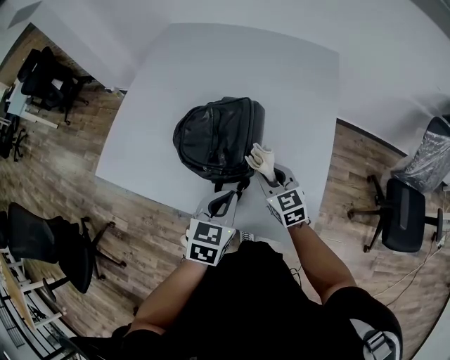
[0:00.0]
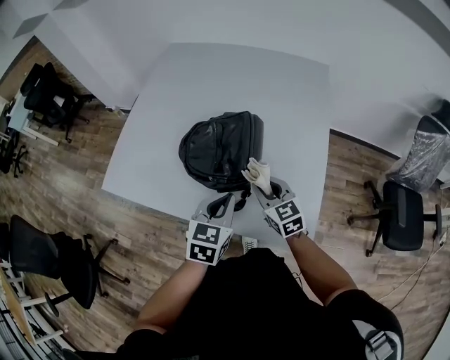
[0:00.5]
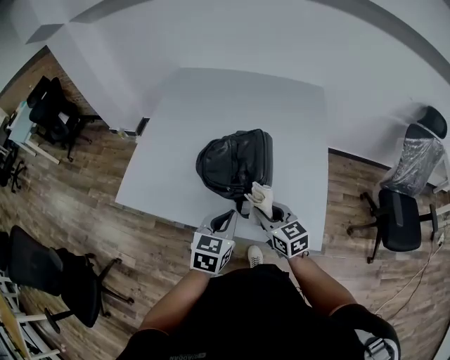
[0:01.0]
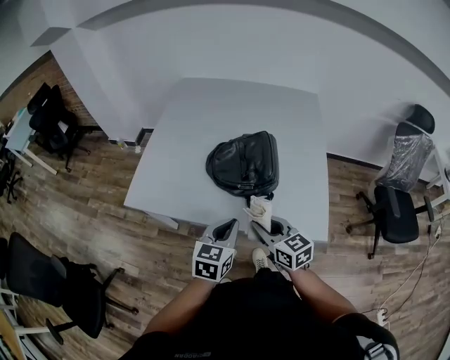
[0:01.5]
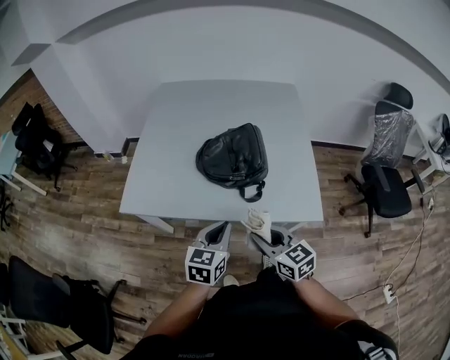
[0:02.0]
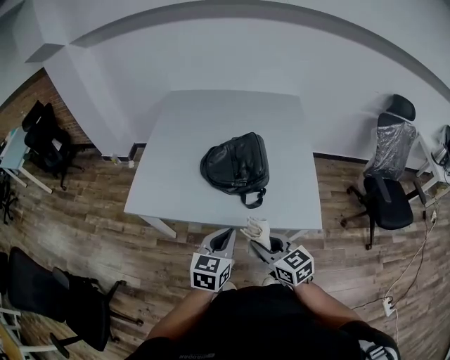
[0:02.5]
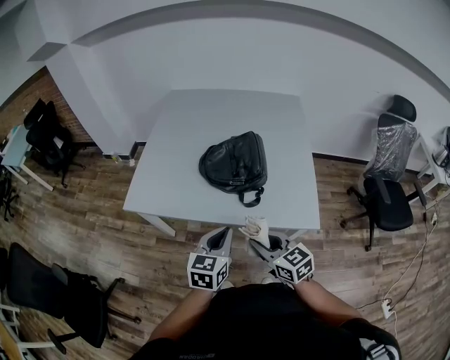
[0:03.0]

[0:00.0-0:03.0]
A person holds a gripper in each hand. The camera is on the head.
0:00.0 to 0:01.5: The right gripper is displaced backward, to the left and upward by about 25 cm, while the left gripper moves to the left, backward and upward, roughly 20 cm.
0:01.5 to 0:03.0: Both grippers move backward, roughly 10 cm.

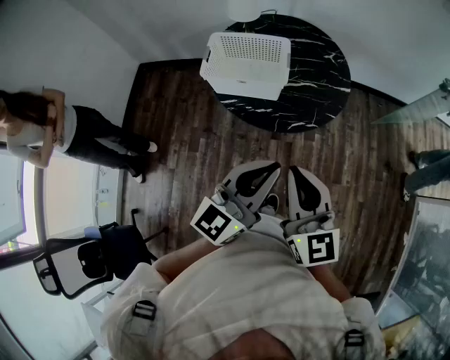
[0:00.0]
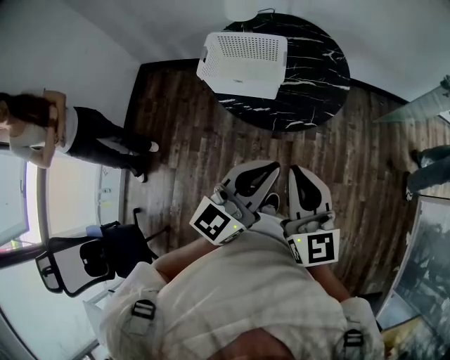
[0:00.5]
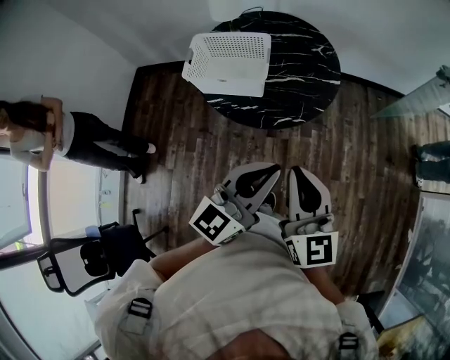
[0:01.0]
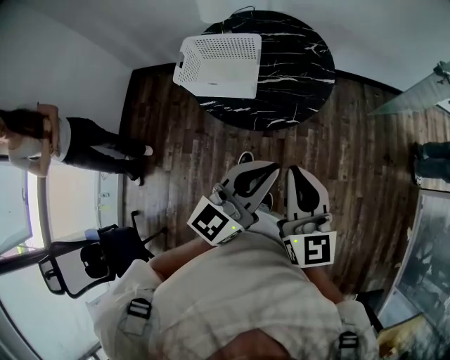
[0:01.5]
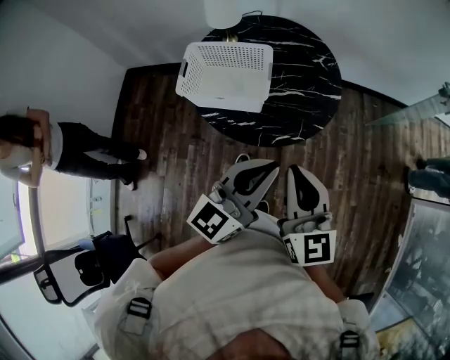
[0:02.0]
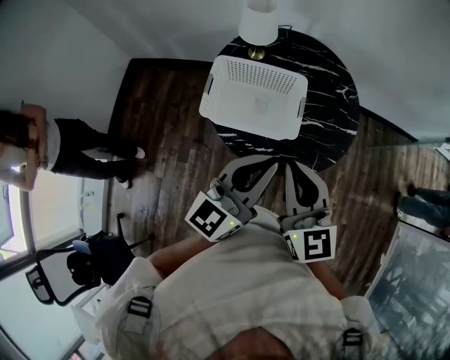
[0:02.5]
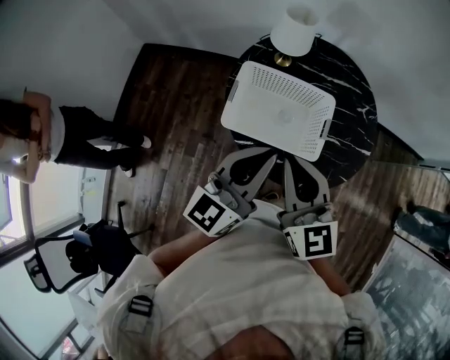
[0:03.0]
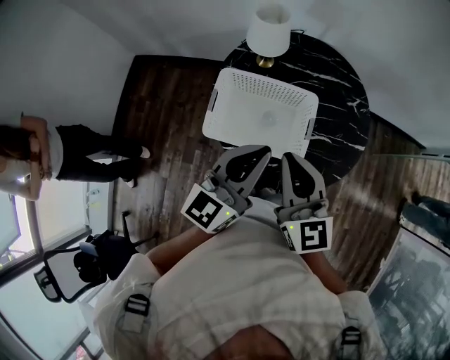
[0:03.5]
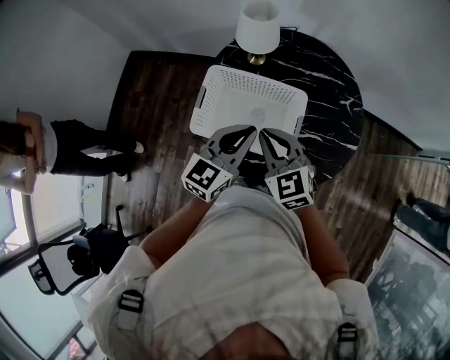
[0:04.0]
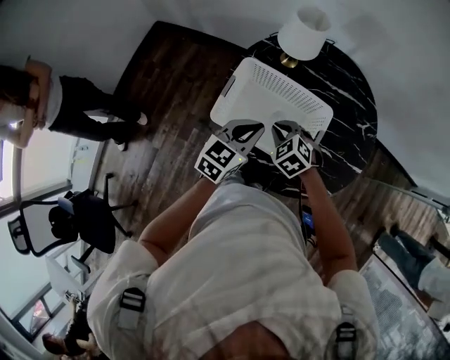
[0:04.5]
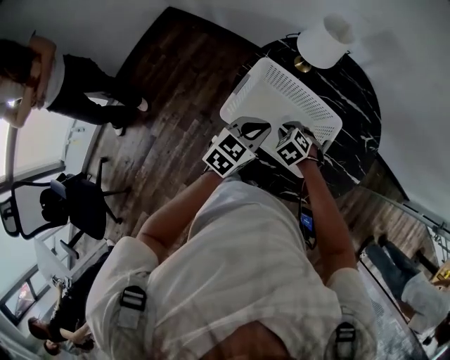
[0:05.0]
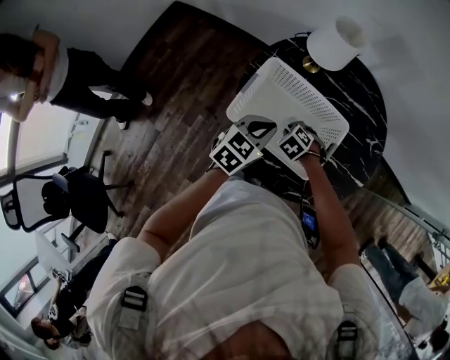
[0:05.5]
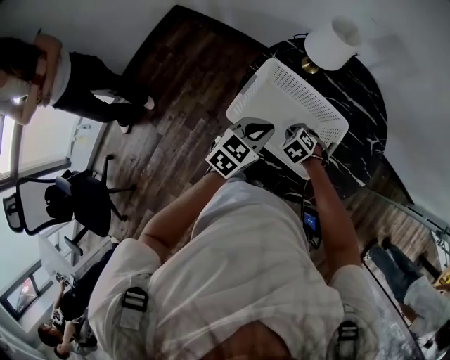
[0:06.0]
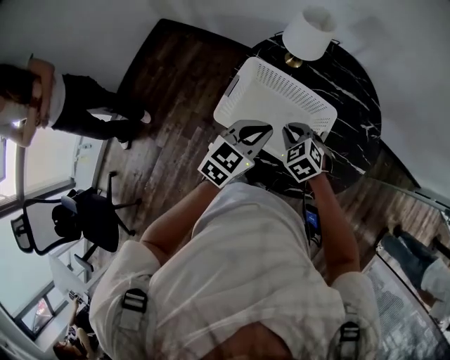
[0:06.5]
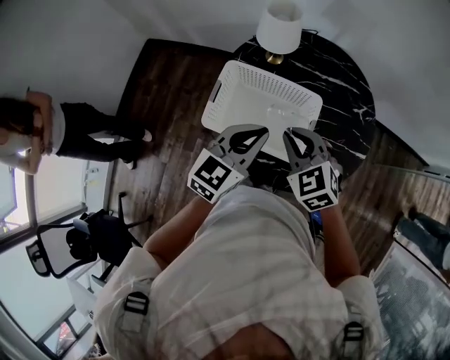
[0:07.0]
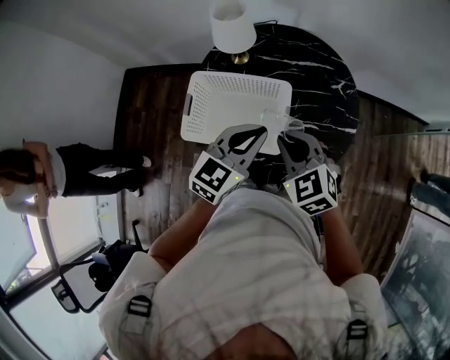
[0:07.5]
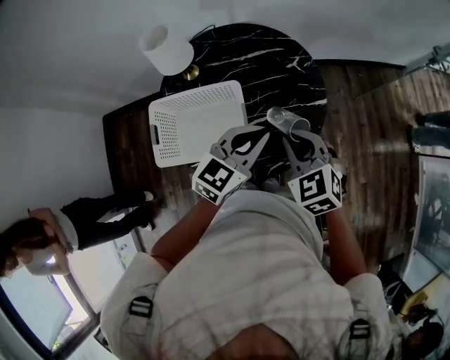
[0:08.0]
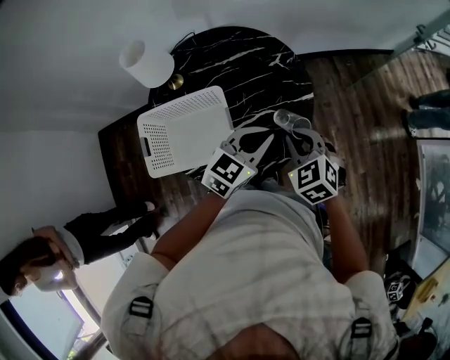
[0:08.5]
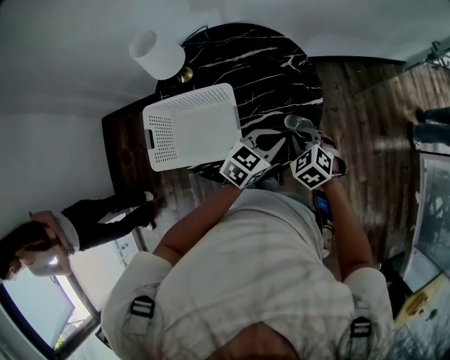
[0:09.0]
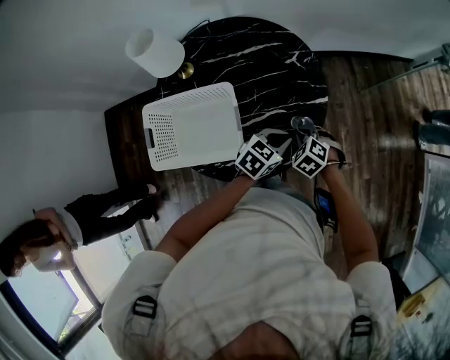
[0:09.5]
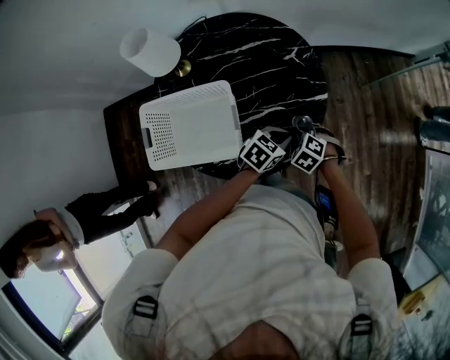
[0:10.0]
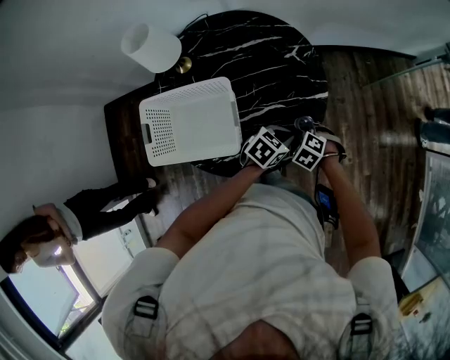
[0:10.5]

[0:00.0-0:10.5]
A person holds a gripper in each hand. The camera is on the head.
0:00.0 to 0:02.0: The grippers both shift forward by some 10 cm.
0:02.0 to 0:04.0: Both grippers move forward and to the left, some 35 cm. The right gripper swivels approximately 40 degrees.
0:04.0 to 0:06.5: The right gripper goes about 15 cm downward, and changes its angle by some 30 degrees; the left gripper travels downward by approximately 5 cm.
0:06.5 to 0:08.5: The right gripper moves roughly 30 cm, and changes its angle by some 40 degrees. Meanwhile the left gripper shifts by approximately 30 cm, and turns by approximately 40 degrees.
0:08.5 to 0:10.5: The two grippers go about 20 cm downward. The right gripper changes its angle by roughly 40 degrees. Meanwhile the left gripper rotates some 30 degrees.

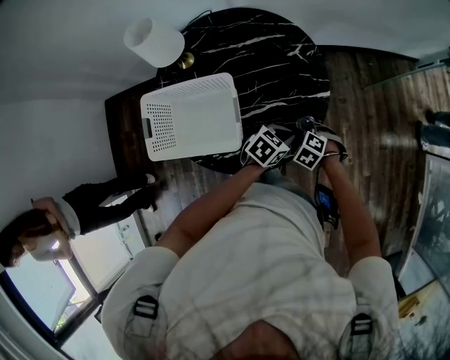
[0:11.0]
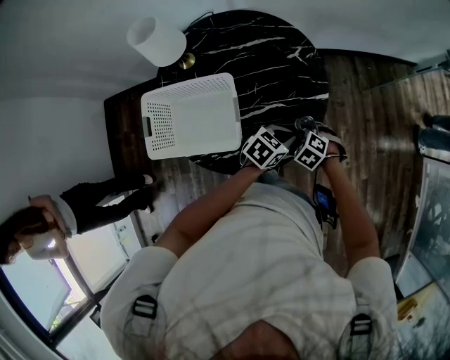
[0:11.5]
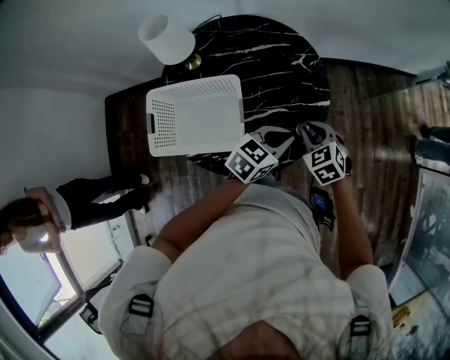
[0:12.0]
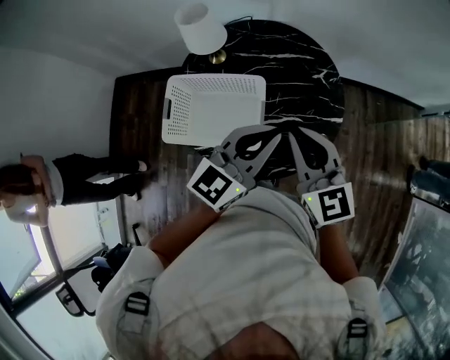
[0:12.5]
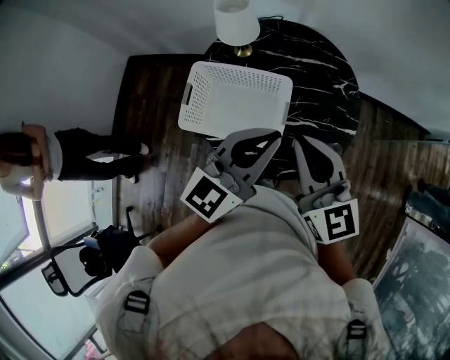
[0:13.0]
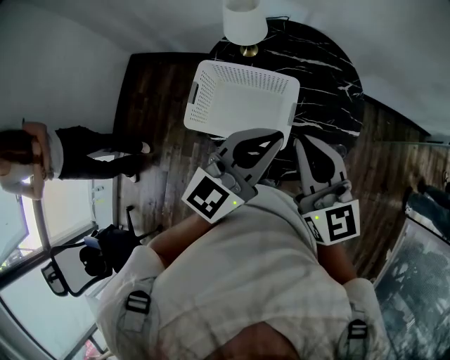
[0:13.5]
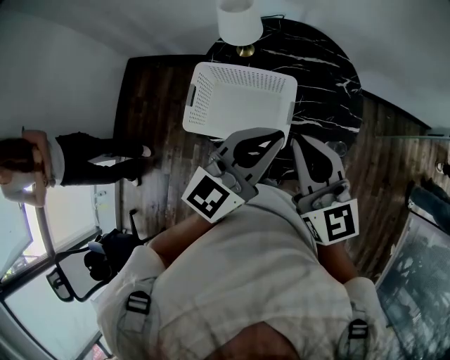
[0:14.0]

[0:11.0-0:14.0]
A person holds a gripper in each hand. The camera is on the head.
0:11.0 to 0:12.5: Both grippers move upward, about 35 cm. The right gripper angles its fingers upward, by about 70 degrees, while the left gripper tips its fingers upward by roughly 40 degrees.
0:12.5 to 0:14.0: Both grippers move to the left, approximately 10 cm.

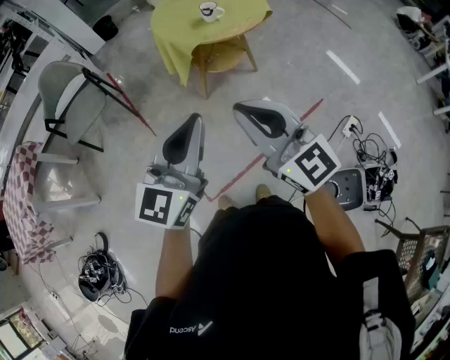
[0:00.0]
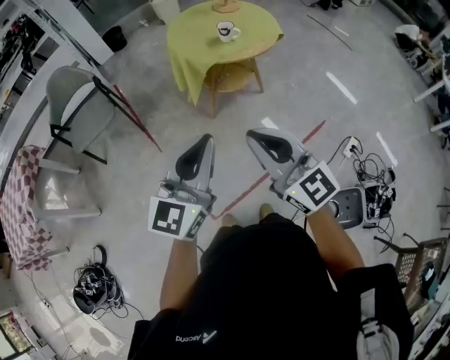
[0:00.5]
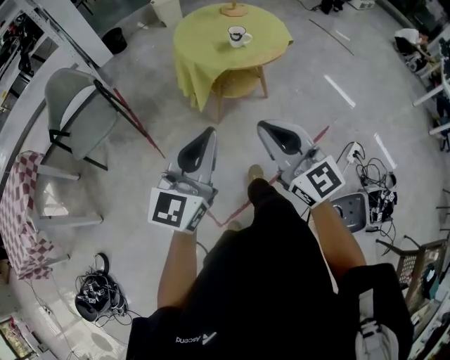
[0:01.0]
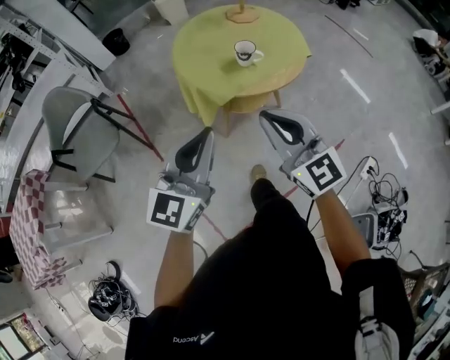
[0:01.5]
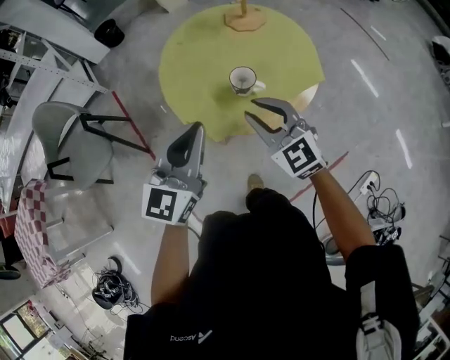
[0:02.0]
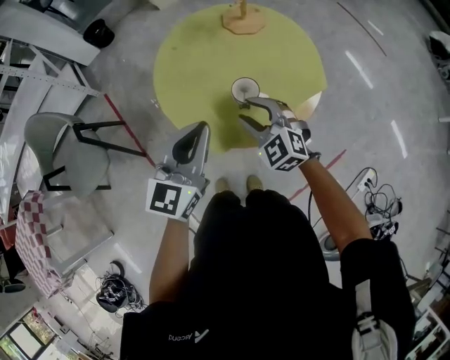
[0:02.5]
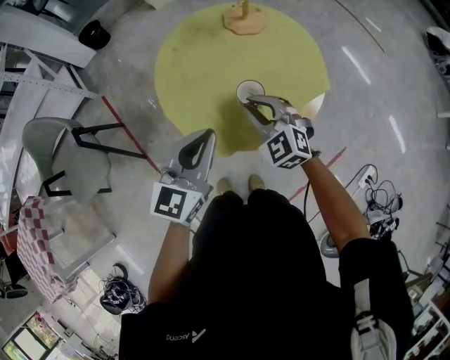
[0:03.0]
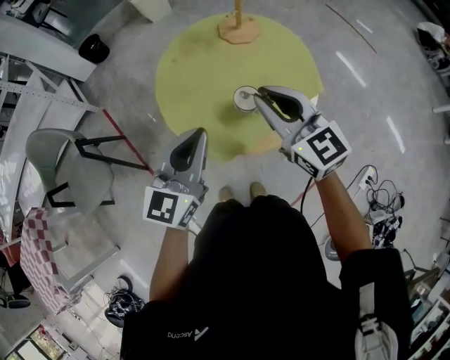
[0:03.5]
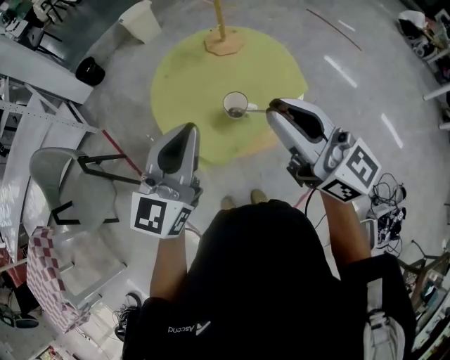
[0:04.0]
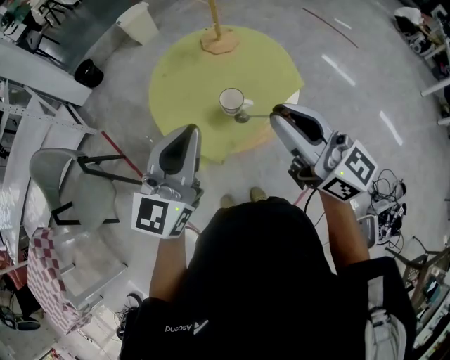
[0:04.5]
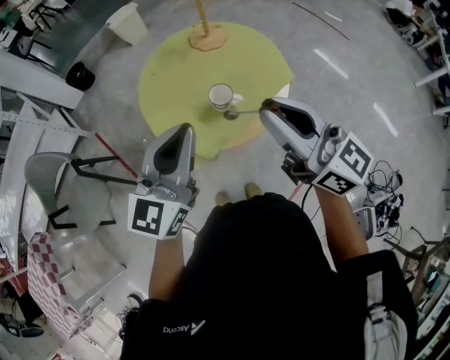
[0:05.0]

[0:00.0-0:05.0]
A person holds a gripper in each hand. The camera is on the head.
0:00.0 to 0:02.5: Both grippers are carried forward, roughly 60 cm. The right gripper angles its fingers downward, by about 40 degrees, and opens.
0:02.5 to 0:05.0: The left gripper goes approximately 10 cm upward, while the right gripper moves upward, approximately 25 cm, tilts its fingers approximately 40 degrees upward, and closes.

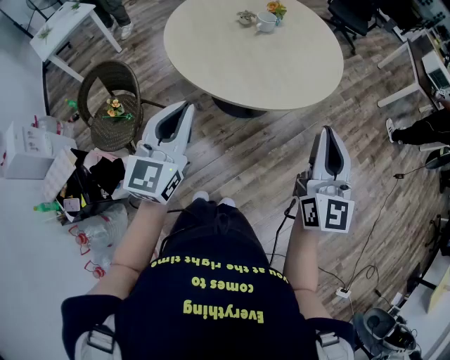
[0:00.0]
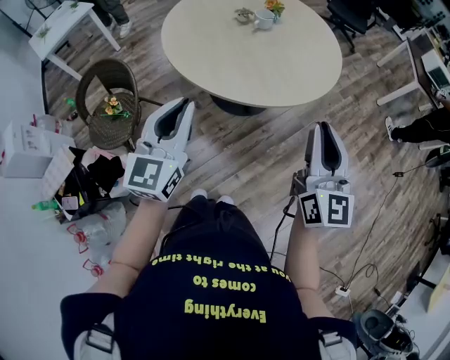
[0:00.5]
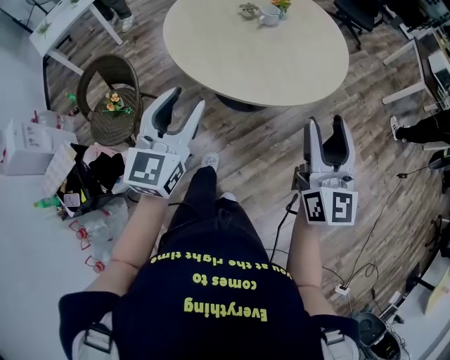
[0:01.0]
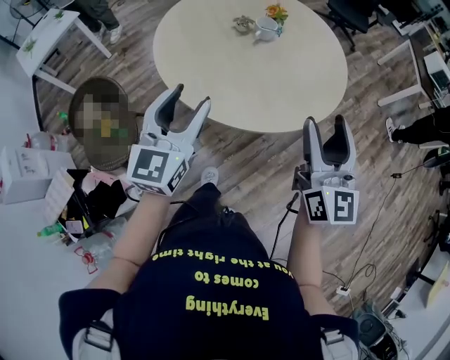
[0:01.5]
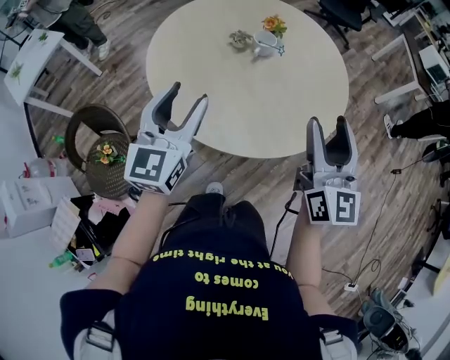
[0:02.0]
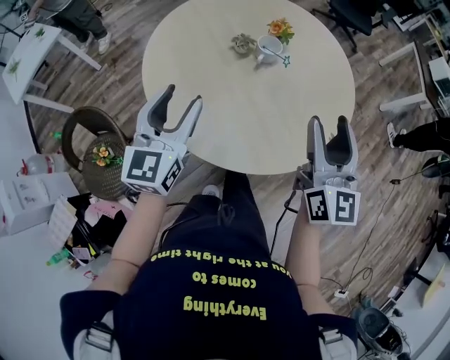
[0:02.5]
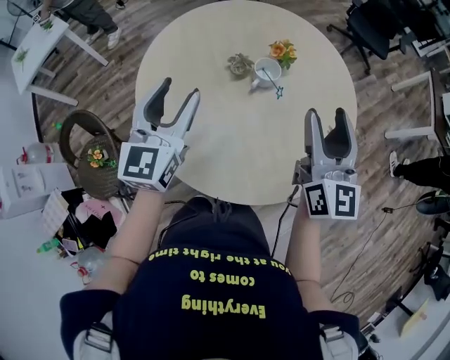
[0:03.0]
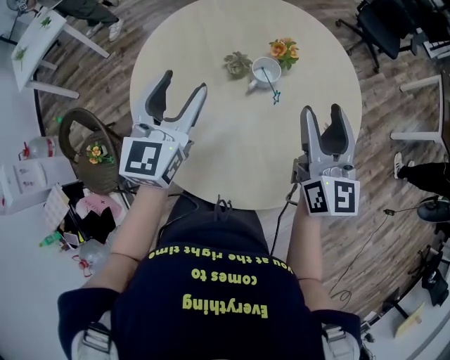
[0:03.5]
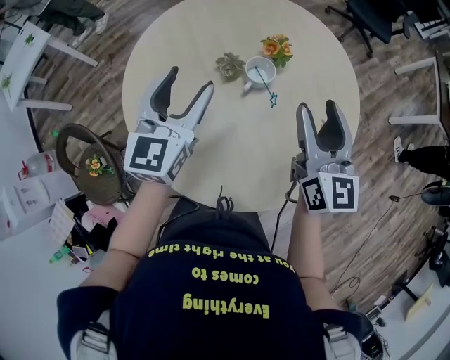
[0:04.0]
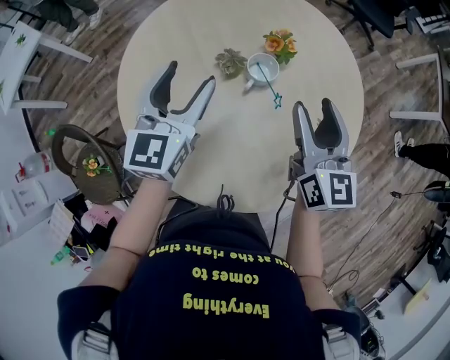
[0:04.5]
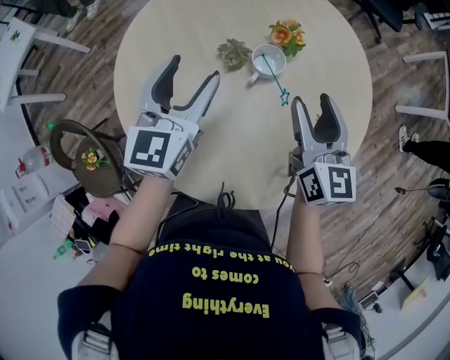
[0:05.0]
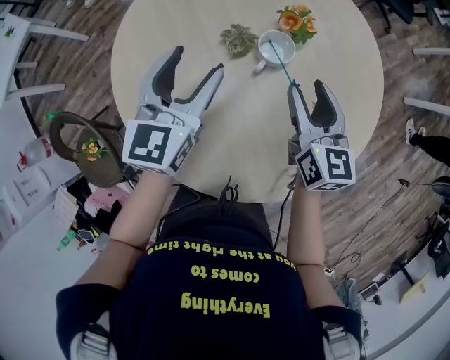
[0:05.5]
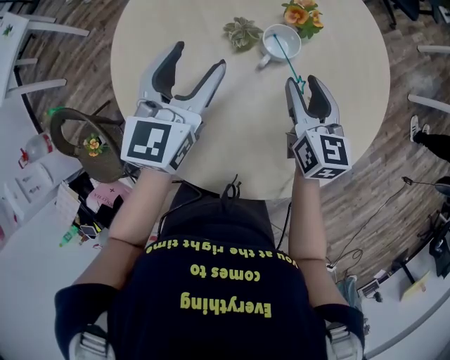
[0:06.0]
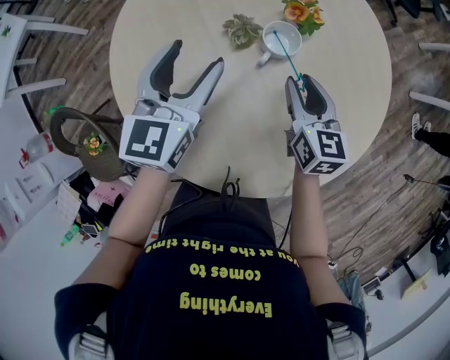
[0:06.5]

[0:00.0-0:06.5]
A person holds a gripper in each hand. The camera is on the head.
0:00.0 to 0:02.0: The two grippers go approximately 25 cm forward. The left gripper opens. The right gripper opens.
0:02.0 to 0:04.5: The two grippers go approximately 30 cm forward.
0:04.5 to 0:06.5: The left gripper heads downward, covering approximately 5 cm; the right gripper shifts about 15 cm downward, and closes up.
